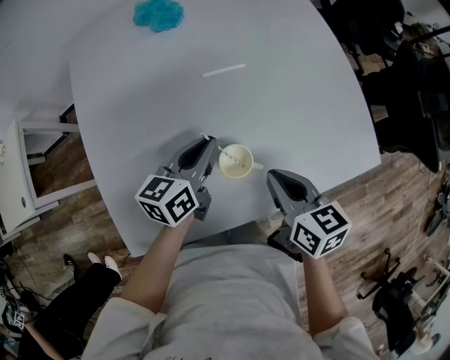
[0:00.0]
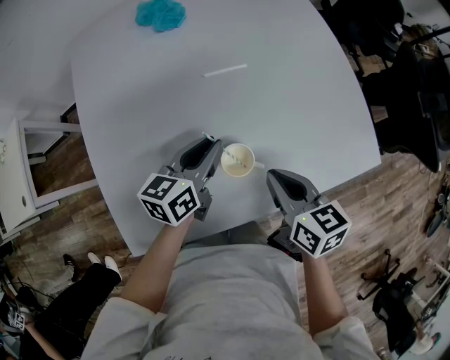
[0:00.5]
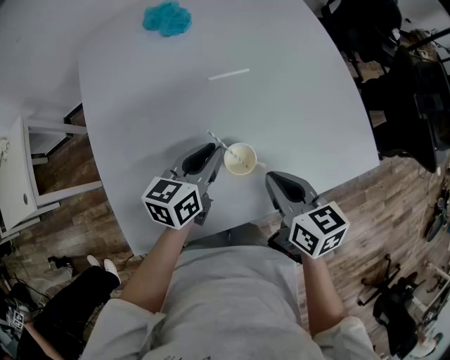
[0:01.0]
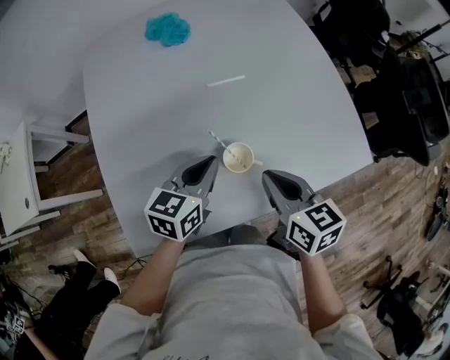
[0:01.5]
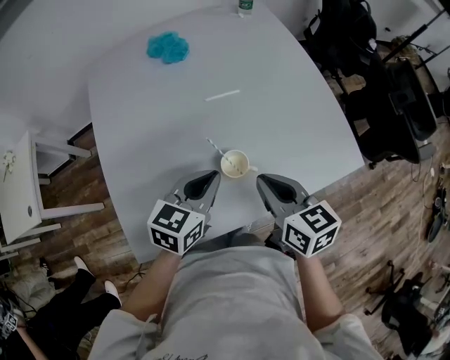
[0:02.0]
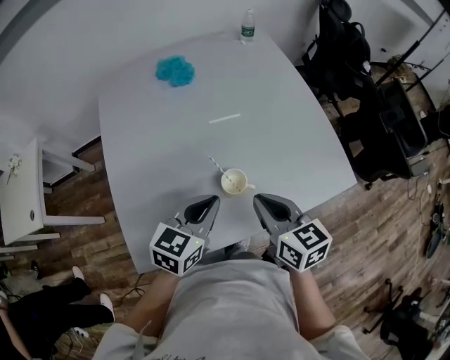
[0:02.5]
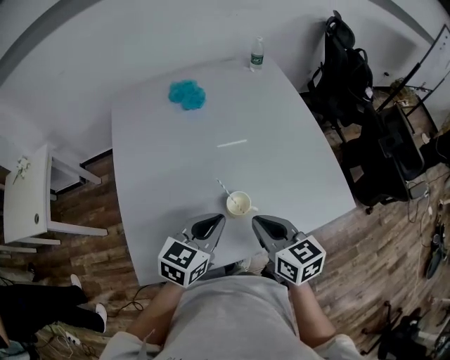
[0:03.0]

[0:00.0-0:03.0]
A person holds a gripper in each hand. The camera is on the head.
0:00.0 to 0:01.5: The left gripper is displaced backward by roughly 5 cm.
0:01.5 to 0:03.0: The left gripper travels upward and backward by about 10 cm; the right gripper is displaced upward by approximately 5 cm.

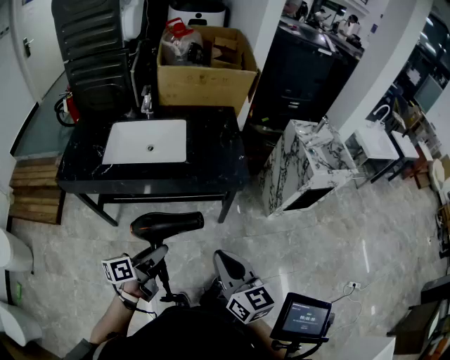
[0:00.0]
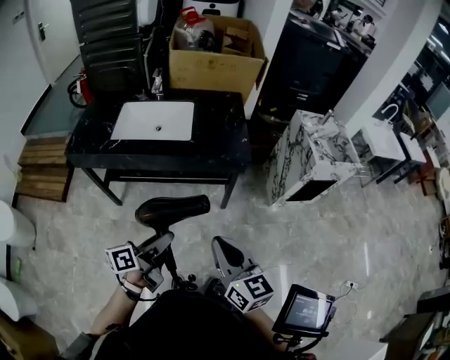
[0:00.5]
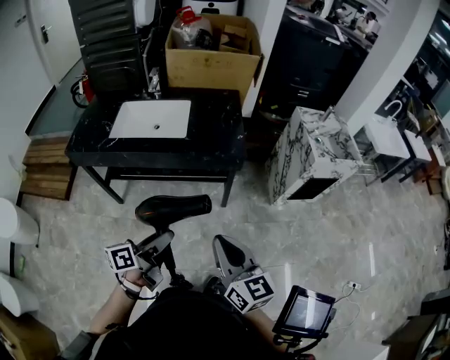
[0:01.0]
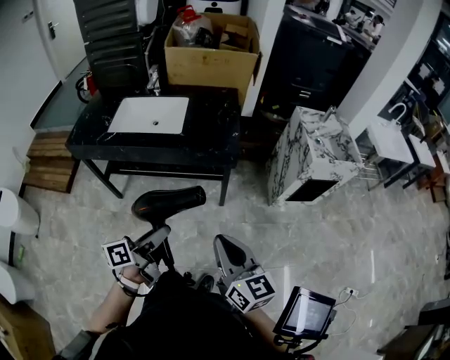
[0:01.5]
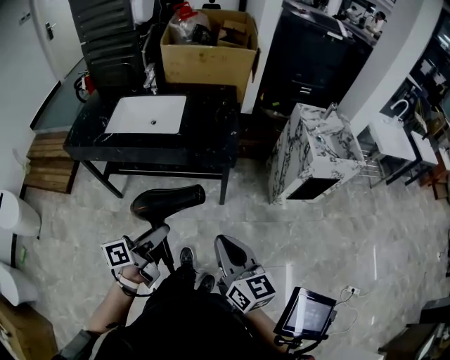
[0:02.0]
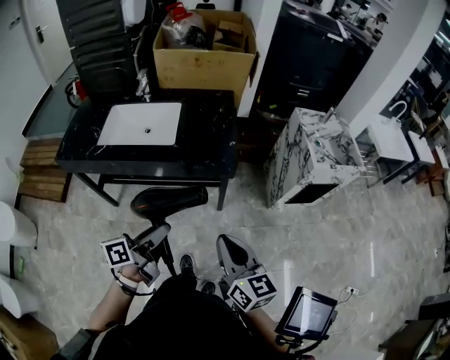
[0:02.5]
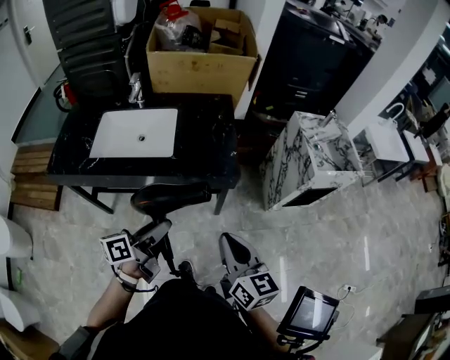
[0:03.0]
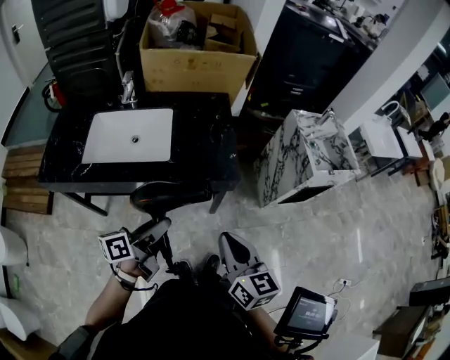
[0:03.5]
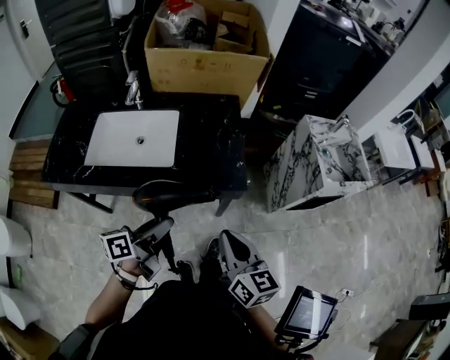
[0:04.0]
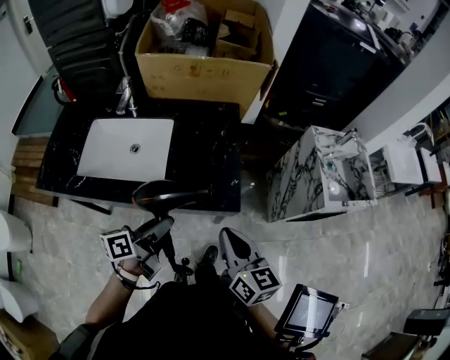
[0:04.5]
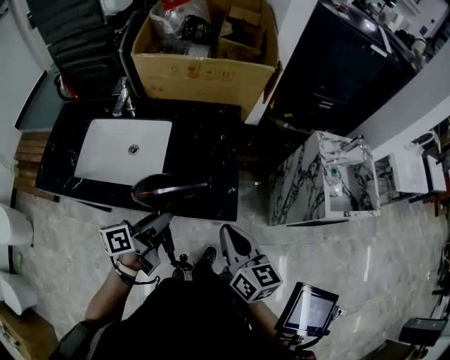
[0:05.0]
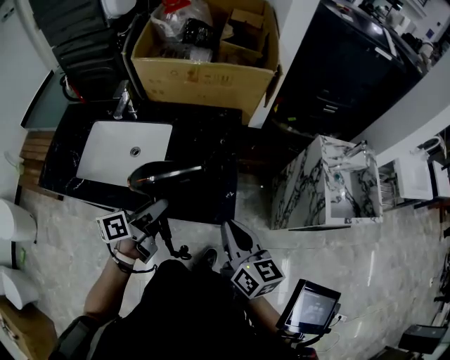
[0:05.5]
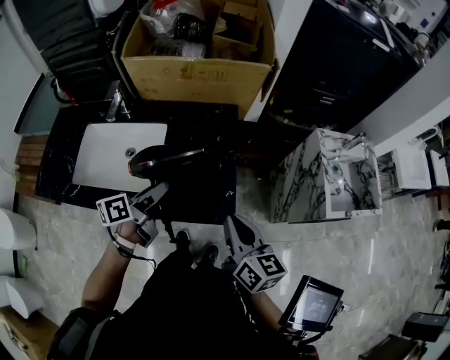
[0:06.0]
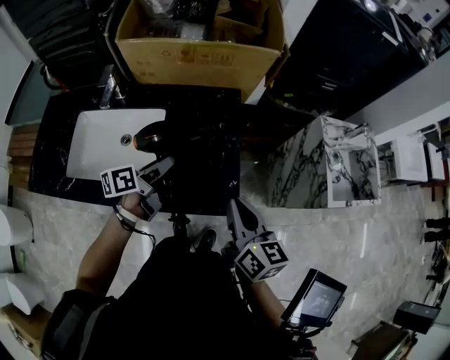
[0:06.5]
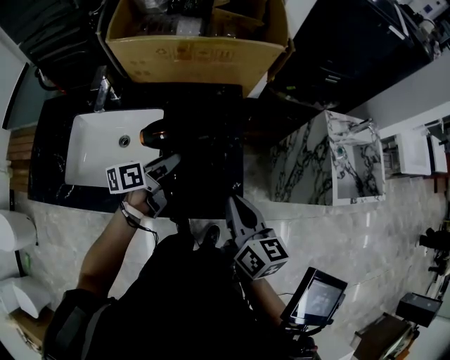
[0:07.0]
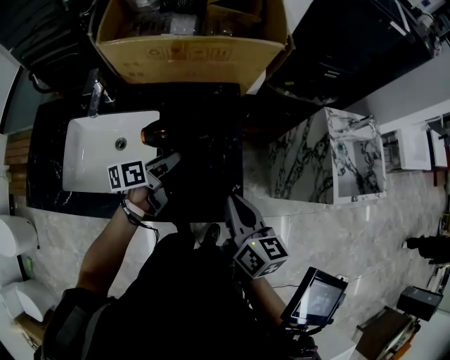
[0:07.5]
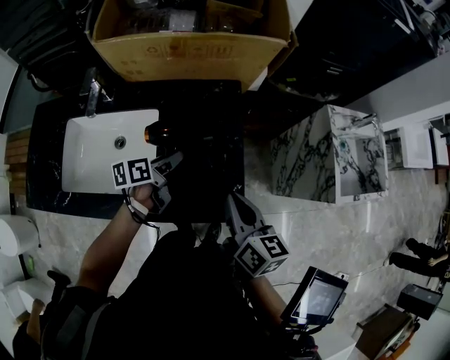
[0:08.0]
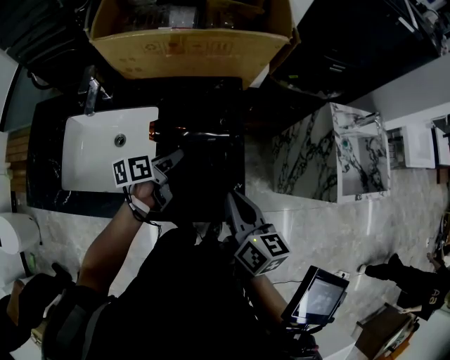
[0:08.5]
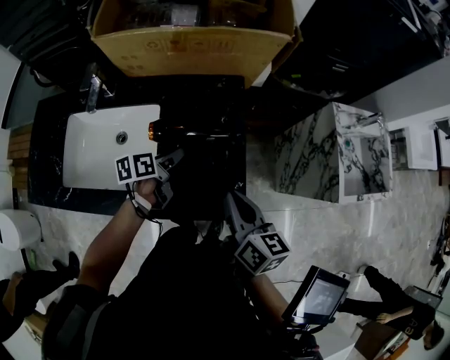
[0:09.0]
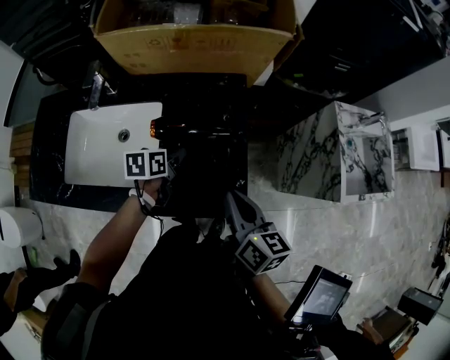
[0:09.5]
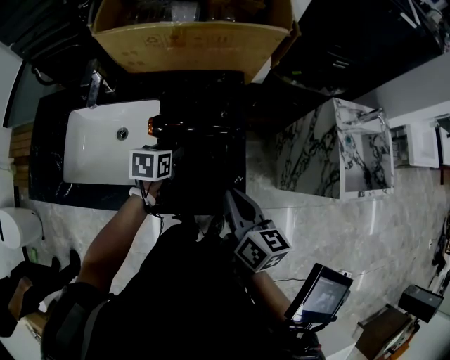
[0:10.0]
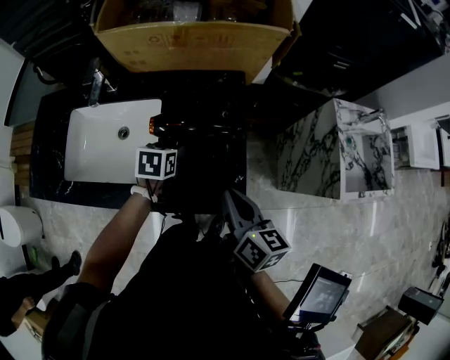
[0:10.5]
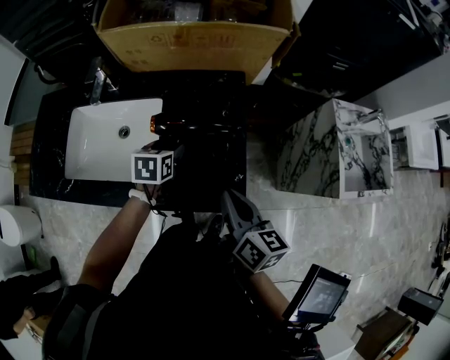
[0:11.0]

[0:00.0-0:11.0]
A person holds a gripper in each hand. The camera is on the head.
0:00.0 to 0:02.0: The grippers both shift to the right by approximately 15 cm.
0:02.0 to 0:03.5: The grippers both shift forward and to the left by about 20 cm.
0:03.5 to 0:05.5: Both grippers move forward, about 25 cm.
0:05.5 to 0:07.5: The left gripper goes roughly 20 cm forward and downward. Meanwhile the right gripper is displaced forward by roughly 10 cm.
0:07.5 to 0:09.0: The grippers make only small movements.
0:09.0 to 0:11.0: The left gripper swivels approximately 40 degrees.

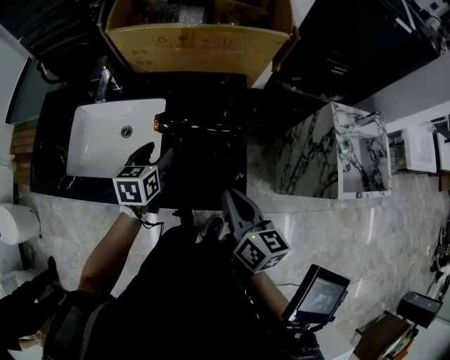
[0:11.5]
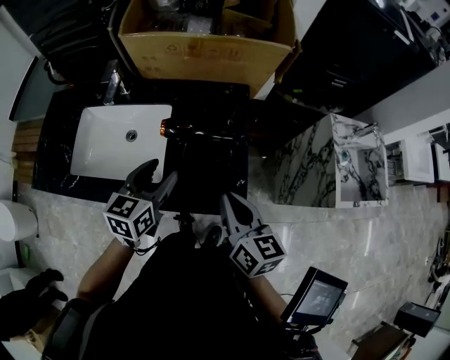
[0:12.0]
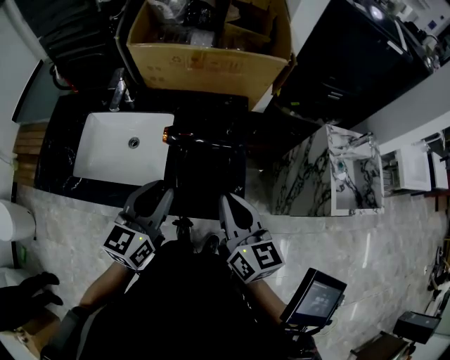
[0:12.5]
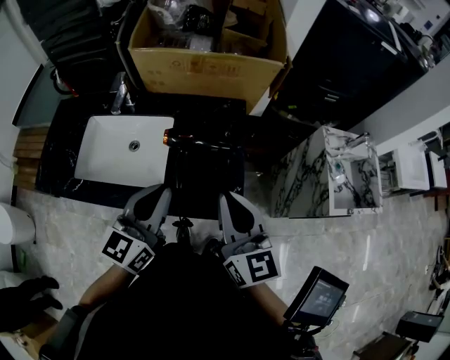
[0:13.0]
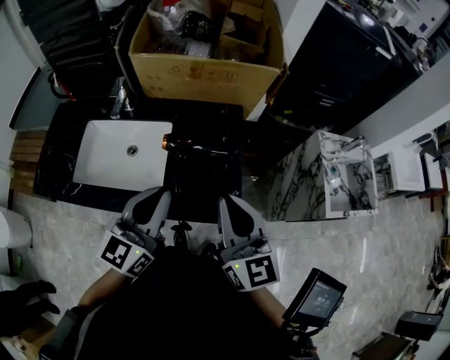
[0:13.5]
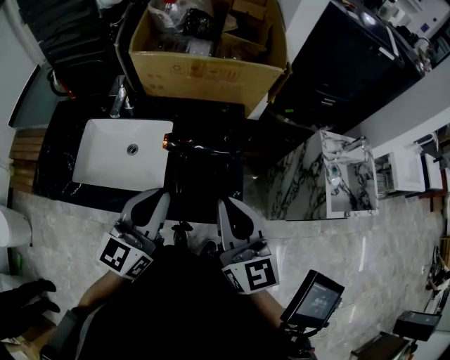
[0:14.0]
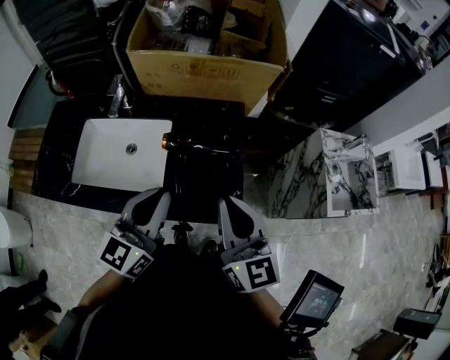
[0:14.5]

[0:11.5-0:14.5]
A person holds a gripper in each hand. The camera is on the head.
0:11.5 to 0:13.0: The left gripper travels upward and backward by some 25 cm, points its fingers roughly 30 degrees further upward, and closes its fingers; the right gripper heads upward, covering about 15 cm, and rotates some 30 degrees.
0:13.0 to 0:14.5: The grippers stay close to where they were, moving slightly.

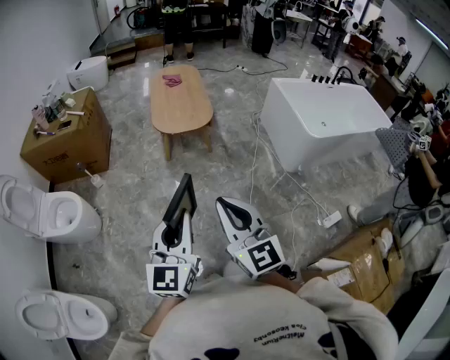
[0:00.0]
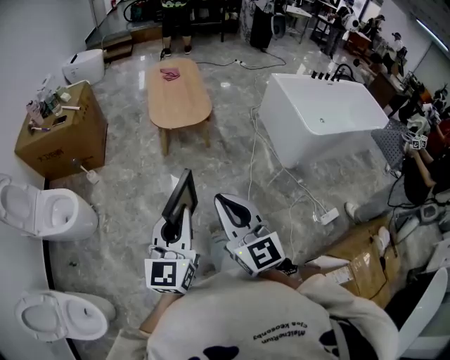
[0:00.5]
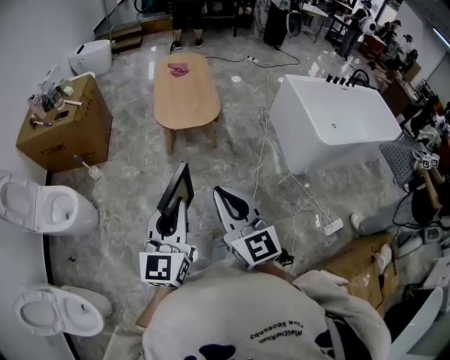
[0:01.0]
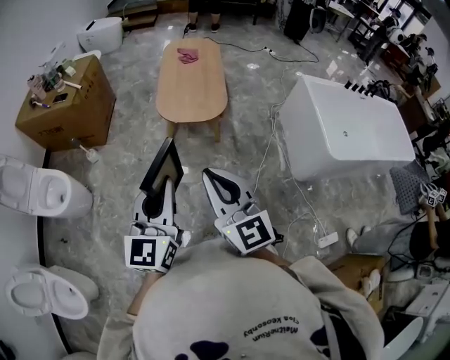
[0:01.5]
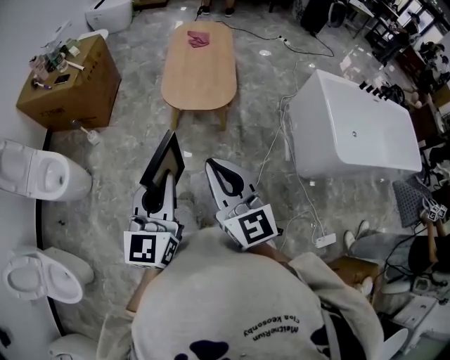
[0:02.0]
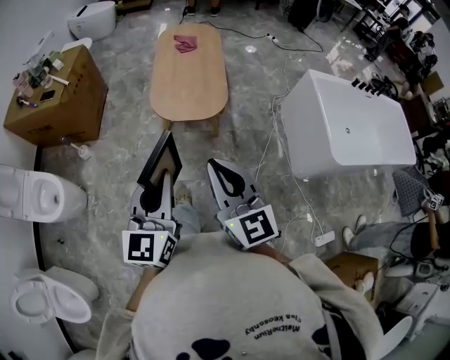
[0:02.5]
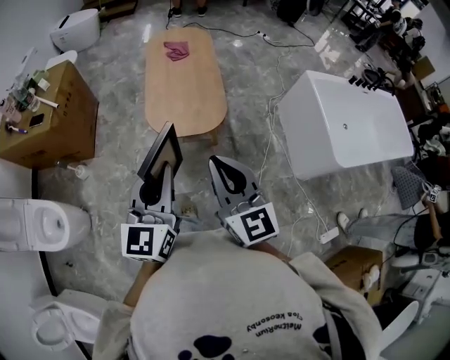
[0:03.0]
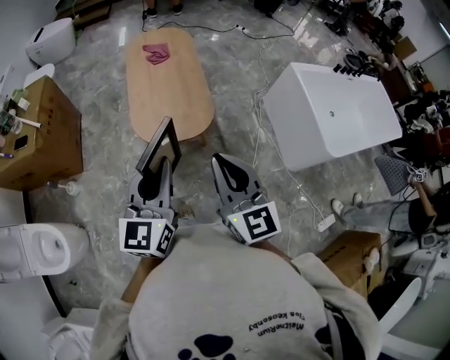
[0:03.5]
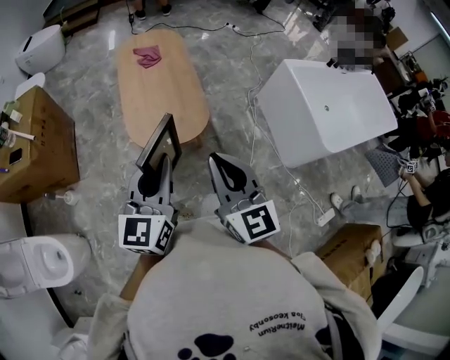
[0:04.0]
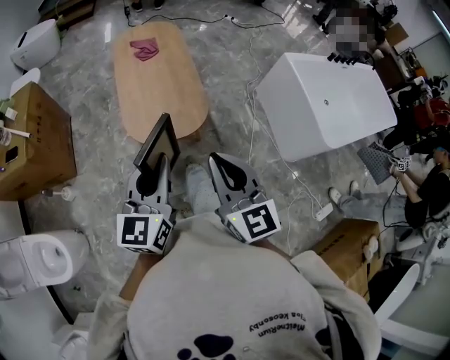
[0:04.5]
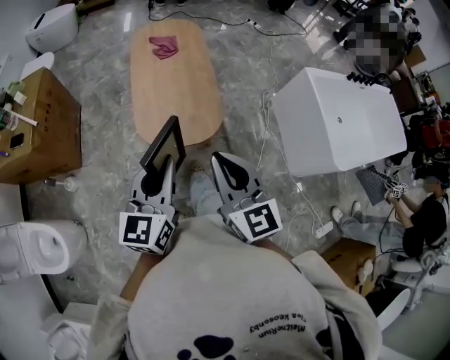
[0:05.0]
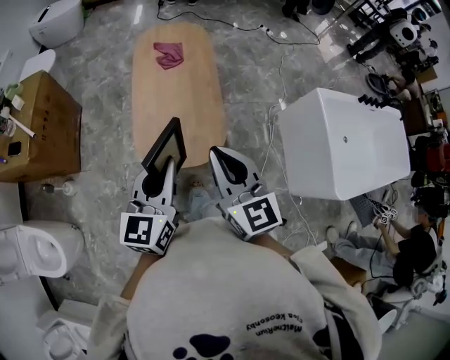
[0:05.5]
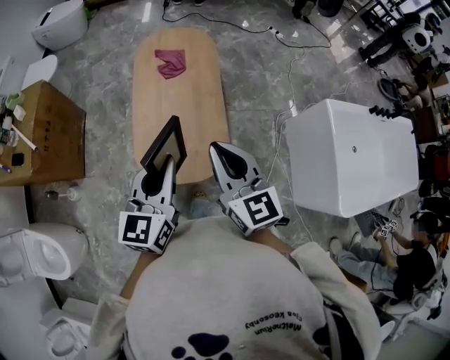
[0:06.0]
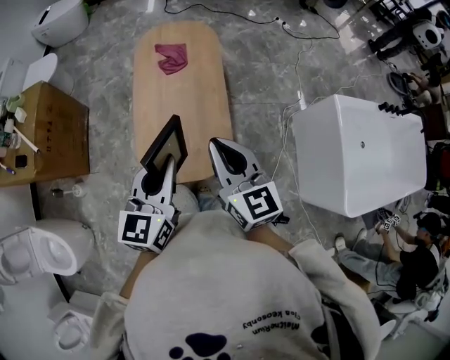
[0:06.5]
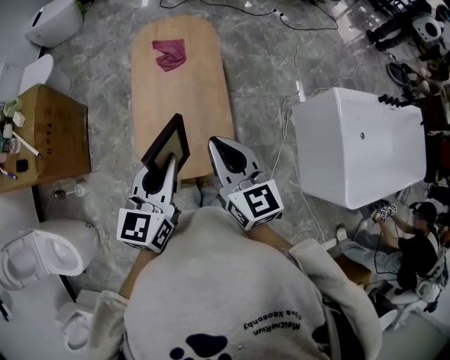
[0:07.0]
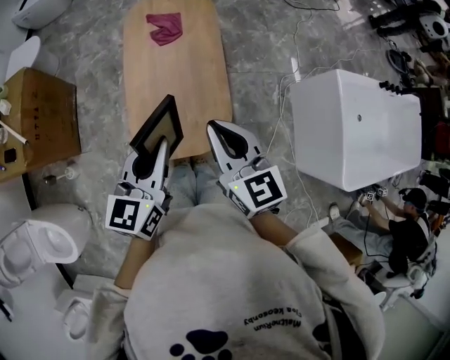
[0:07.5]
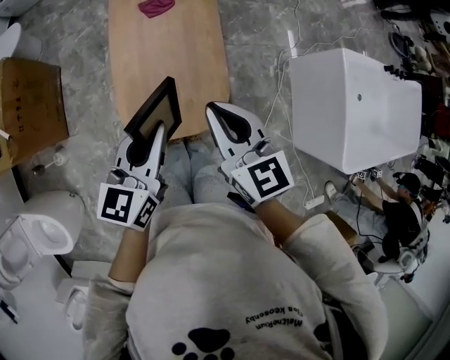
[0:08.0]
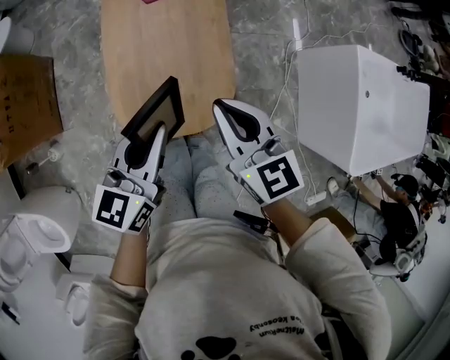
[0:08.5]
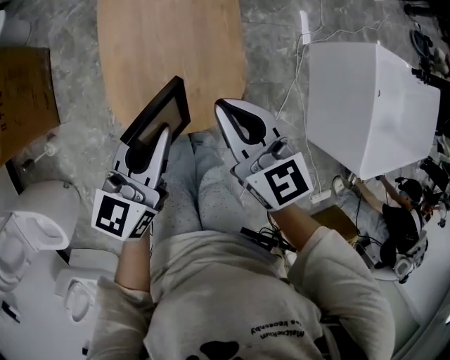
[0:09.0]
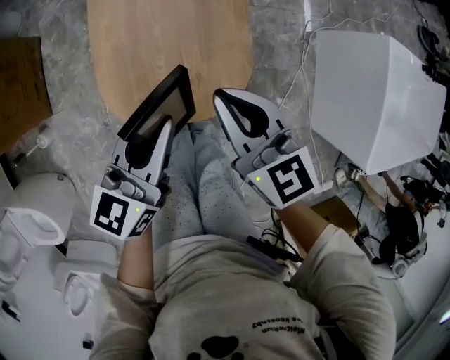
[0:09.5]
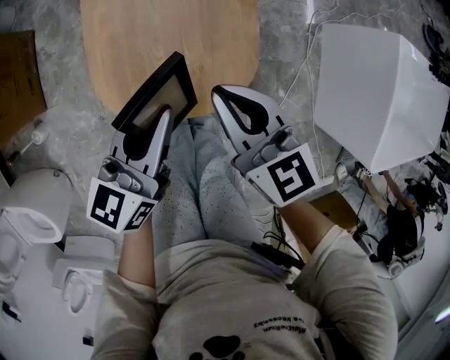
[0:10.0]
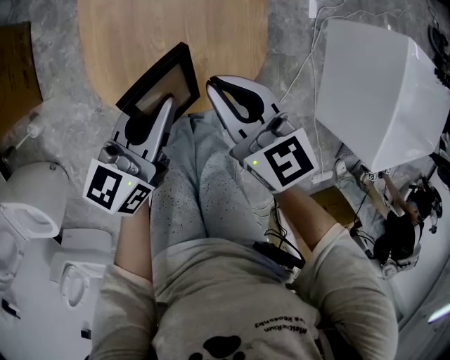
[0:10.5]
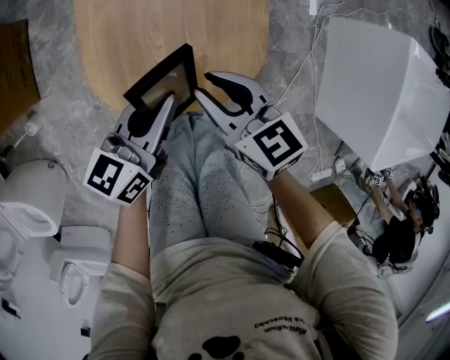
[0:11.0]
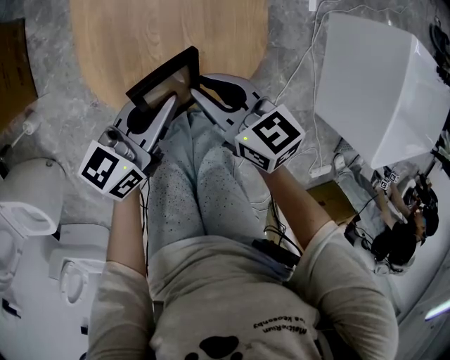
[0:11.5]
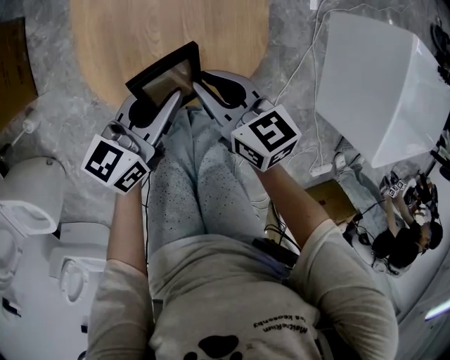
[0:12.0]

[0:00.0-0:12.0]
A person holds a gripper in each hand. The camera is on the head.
0:00.0 to 0:02.0: Both grippers travel together forward, about 30 cm.
0:02.0 to 0:04.0: Both grippers move forward, some 25 cm. The left gripper changes its angle by approximately 20 degrees. Meanwhile the right gripper swivels approximately 20 degrees.
0:04.0 to 0:06.0: Both grippers move forward, about 30 cm.
0:06.0 to 0:08.0: The right gripper goes approximately 10 cm downward and forward, while the left gripper moves downward, some 5 cm.
0:08.0 to 0:10.0: Both grippers move downward, some 20 cm.
0:10.0 to 0:12.0: The two grippers go roughly 10 cm downward.
